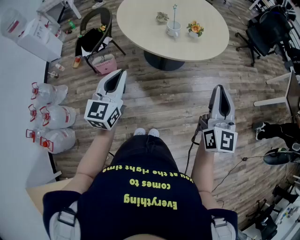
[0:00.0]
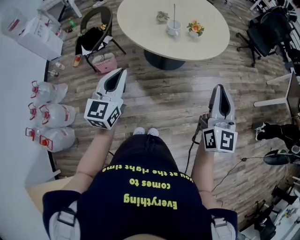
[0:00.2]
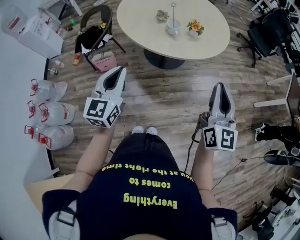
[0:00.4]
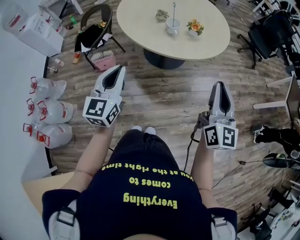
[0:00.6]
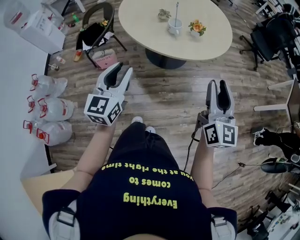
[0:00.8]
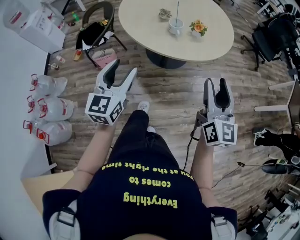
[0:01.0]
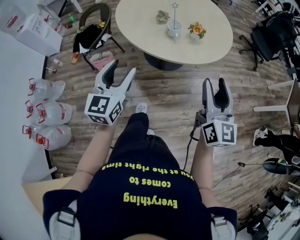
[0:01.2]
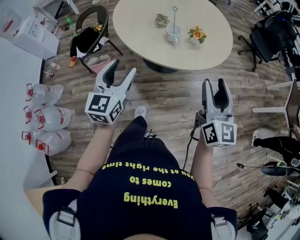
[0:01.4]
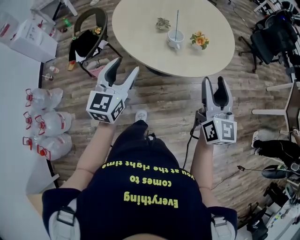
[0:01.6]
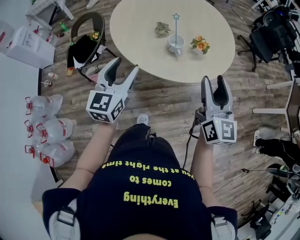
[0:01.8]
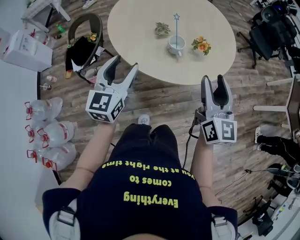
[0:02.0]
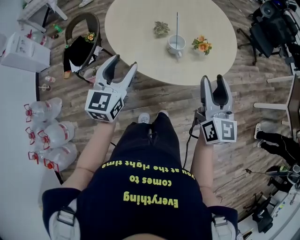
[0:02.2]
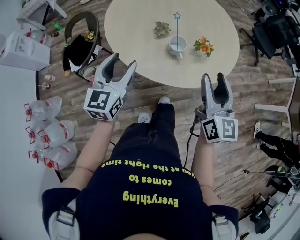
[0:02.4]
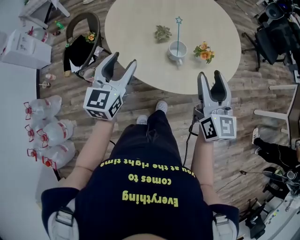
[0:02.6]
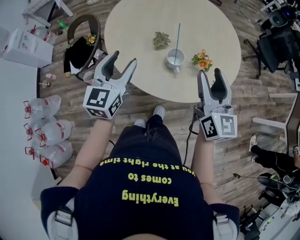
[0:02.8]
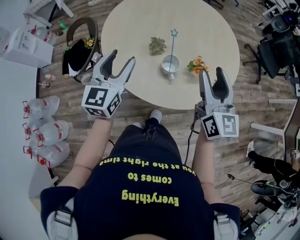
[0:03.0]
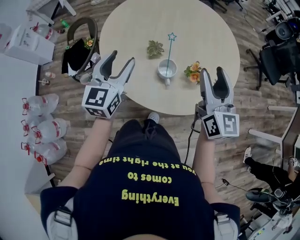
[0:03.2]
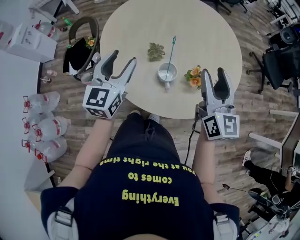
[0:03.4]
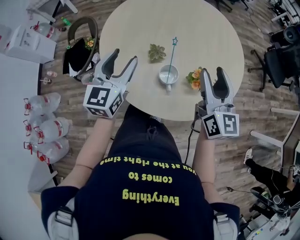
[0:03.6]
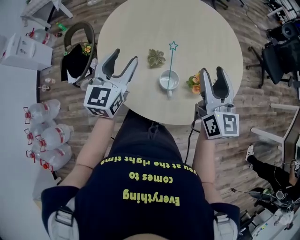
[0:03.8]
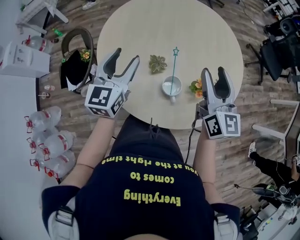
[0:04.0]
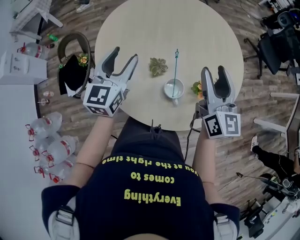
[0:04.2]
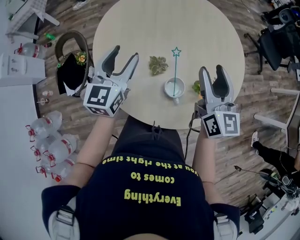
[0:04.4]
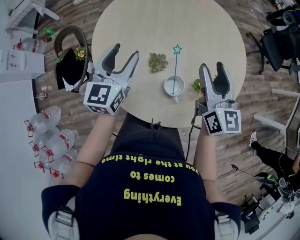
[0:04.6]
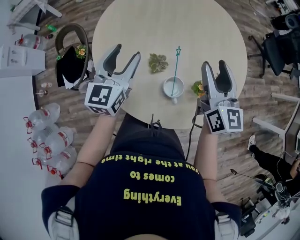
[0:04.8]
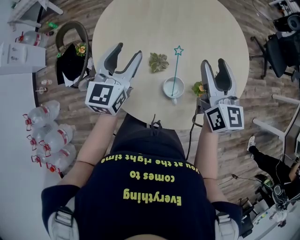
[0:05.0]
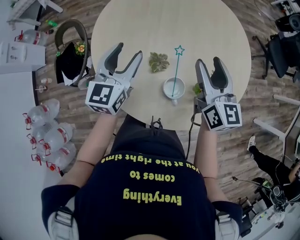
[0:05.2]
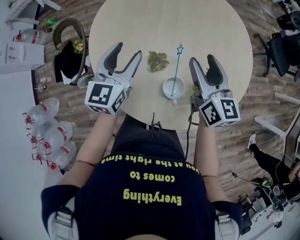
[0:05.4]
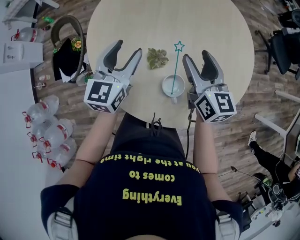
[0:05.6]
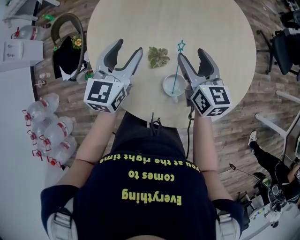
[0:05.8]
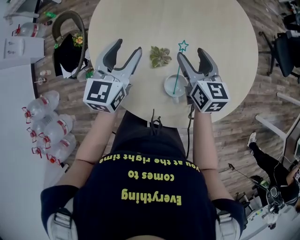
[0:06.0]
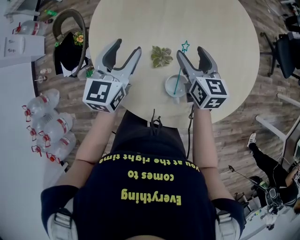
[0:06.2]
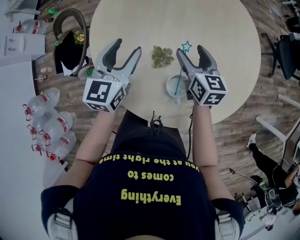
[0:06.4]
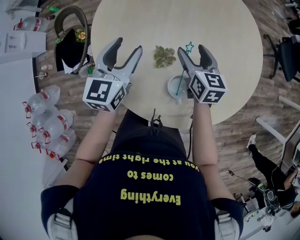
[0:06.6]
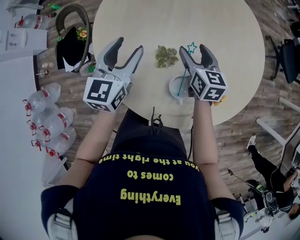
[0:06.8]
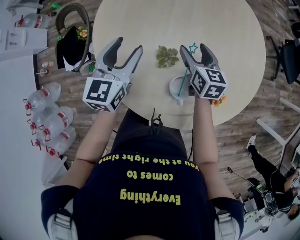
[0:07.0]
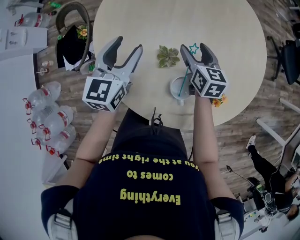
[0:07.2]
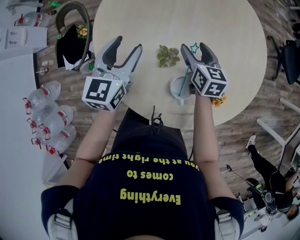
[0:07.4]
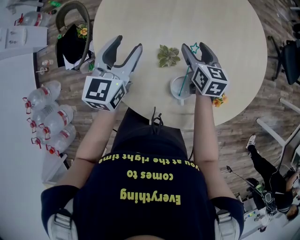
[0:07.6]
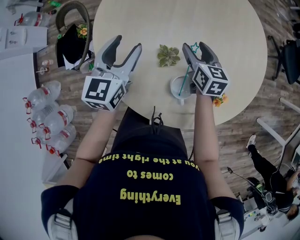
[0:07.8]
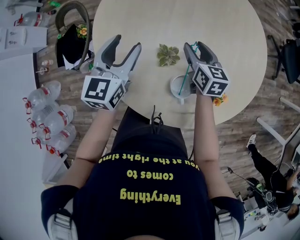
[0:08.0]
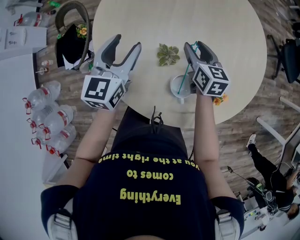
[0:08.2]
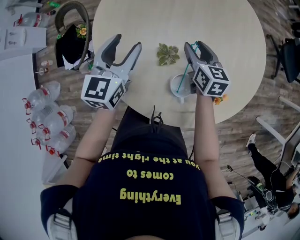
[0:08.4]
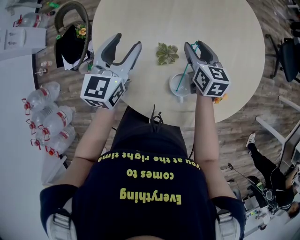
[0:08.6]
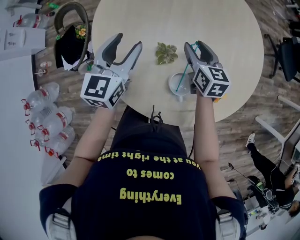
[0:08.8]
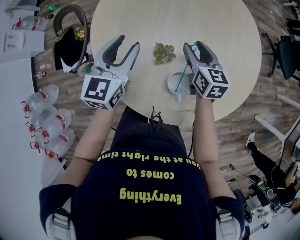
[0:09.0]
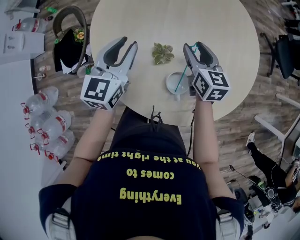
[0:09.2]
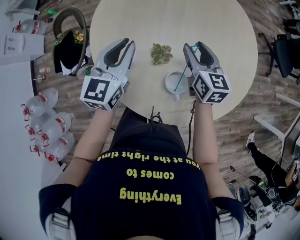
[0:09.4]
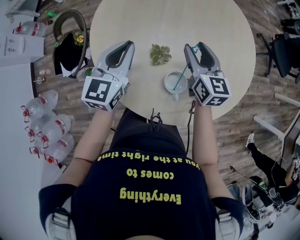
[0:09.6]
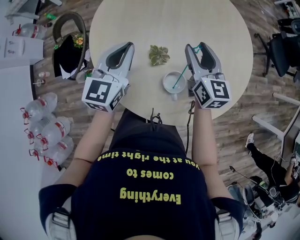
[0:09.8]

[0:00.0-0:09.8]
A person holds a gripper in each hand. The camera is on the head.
0:00.0 to 0:01.4: The grippers both shift forward by about 10 cm. The right gripper opens its fingers. Meanwhile the left gripper opens.
0:01.4 to 0:02.8: The grippers both shift forward by approximately 25 cm.
0:02.8 to 0:04.2: Both grippers travel together forward, roughly 20 cm.
0:04.2 to 0:05.6: The left gripper is displaced downward by about 5 cm; the right gripper heads downward and forward, covering some 15 cm.
0:05.6 to 0:07.0: The right gripper moves downward and forward, some 15 cm.
0:07.0 to 0:08.4: The grippers make only small movements.
0:08.4 to 0:09.8: The right gripper is displaced upward by approximately 10 cm; the left gripper changes place by some 5 cm, and closes.

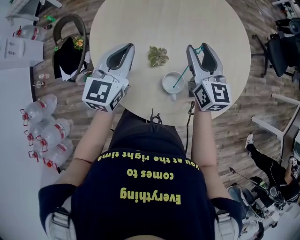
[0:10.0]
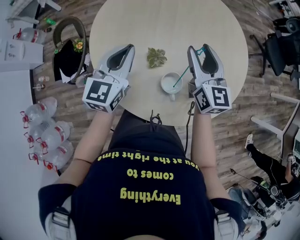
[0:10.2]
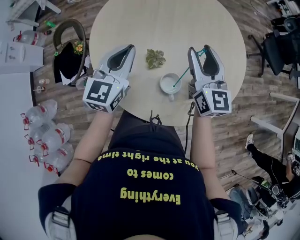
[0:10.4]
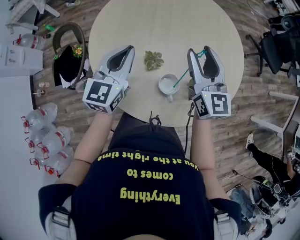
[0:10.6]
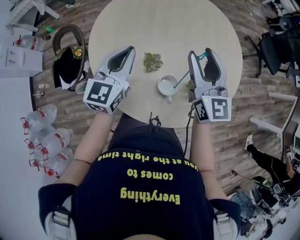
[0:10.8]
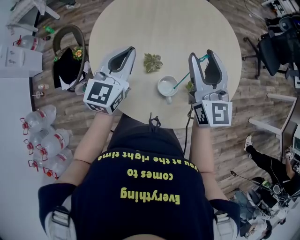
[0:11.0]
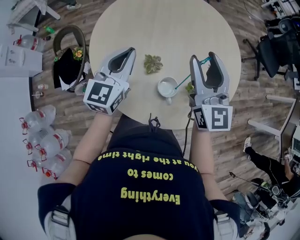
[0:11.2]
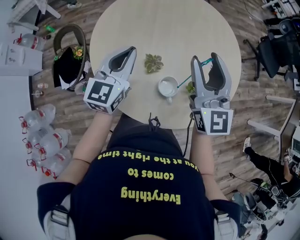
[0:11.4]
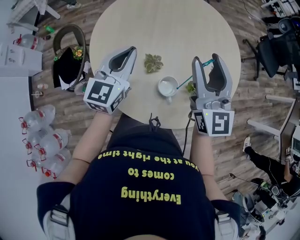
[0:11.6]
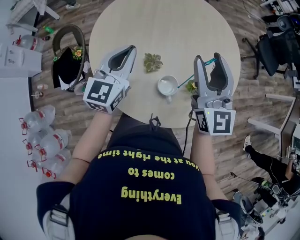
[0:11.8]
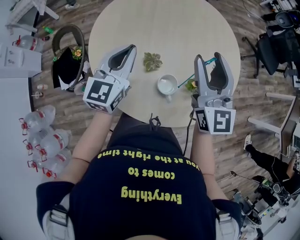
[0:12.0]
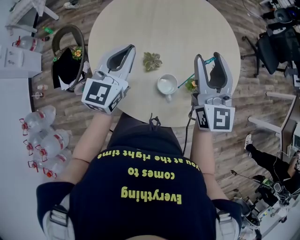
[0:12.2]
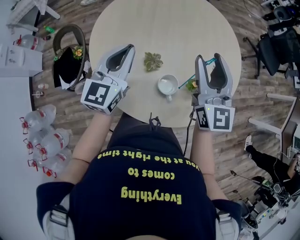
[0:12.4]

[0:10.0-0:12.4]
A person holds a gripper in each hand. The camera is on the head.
0:10.0 to 0:11.2: The right gripper is displaced upward and backward by some 15 cm.
0:11.2 to 0:12.4: The grippers stay close to where they were, moving slightly.

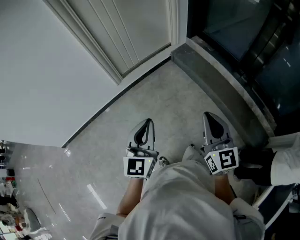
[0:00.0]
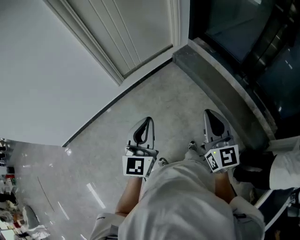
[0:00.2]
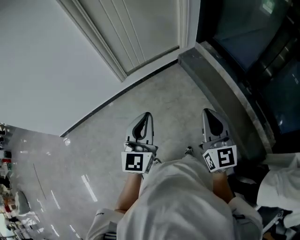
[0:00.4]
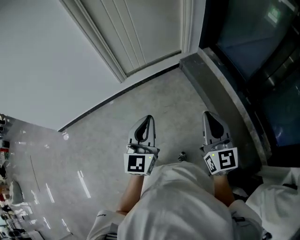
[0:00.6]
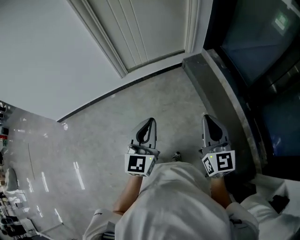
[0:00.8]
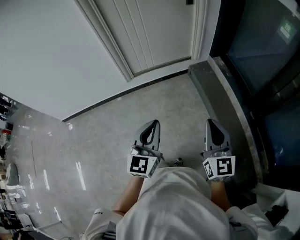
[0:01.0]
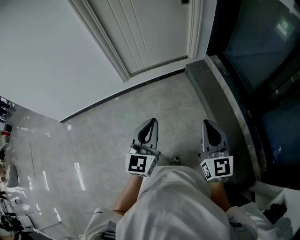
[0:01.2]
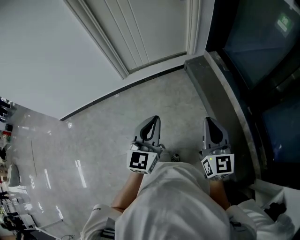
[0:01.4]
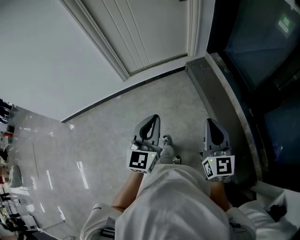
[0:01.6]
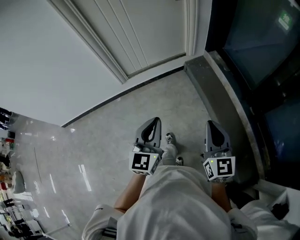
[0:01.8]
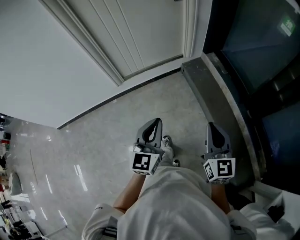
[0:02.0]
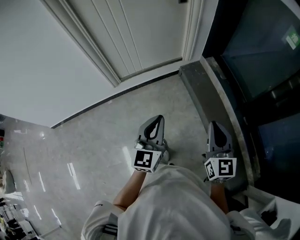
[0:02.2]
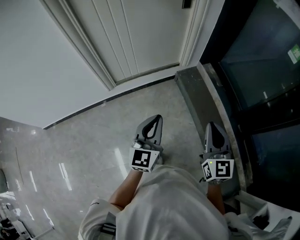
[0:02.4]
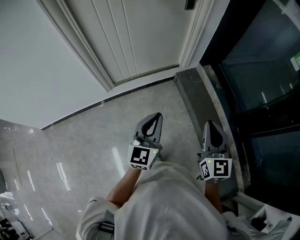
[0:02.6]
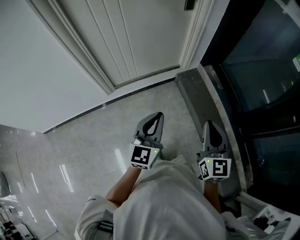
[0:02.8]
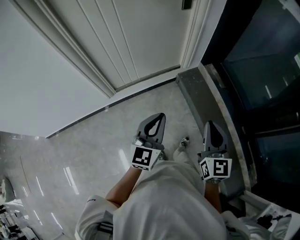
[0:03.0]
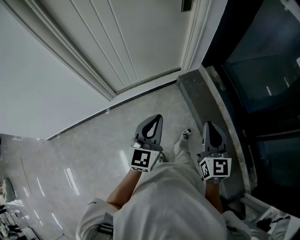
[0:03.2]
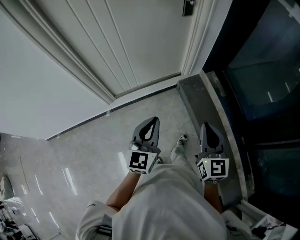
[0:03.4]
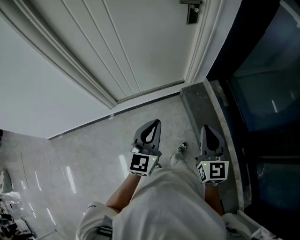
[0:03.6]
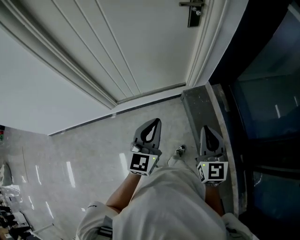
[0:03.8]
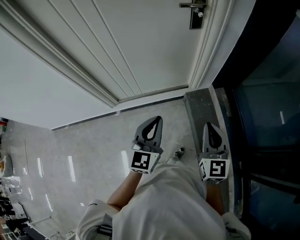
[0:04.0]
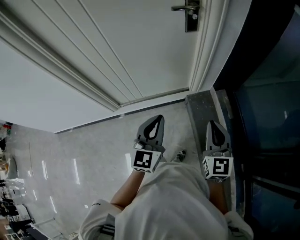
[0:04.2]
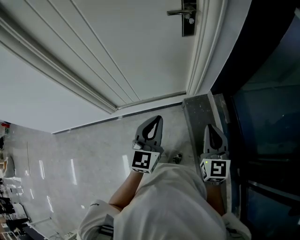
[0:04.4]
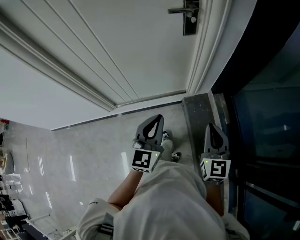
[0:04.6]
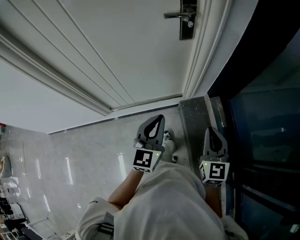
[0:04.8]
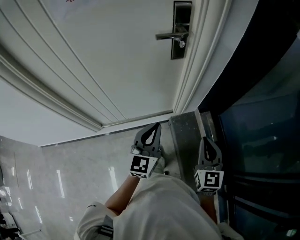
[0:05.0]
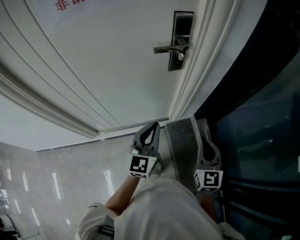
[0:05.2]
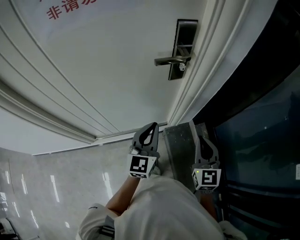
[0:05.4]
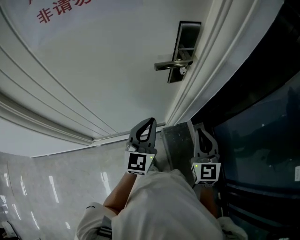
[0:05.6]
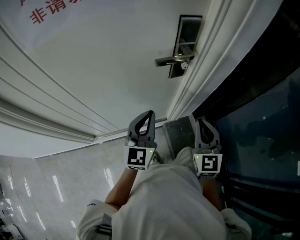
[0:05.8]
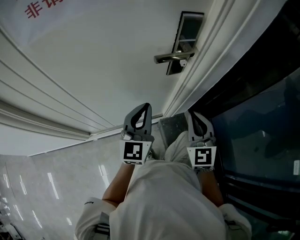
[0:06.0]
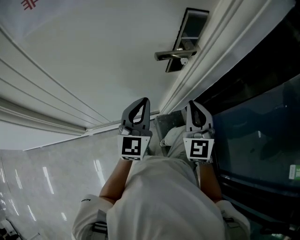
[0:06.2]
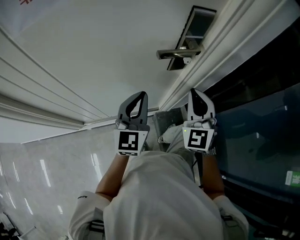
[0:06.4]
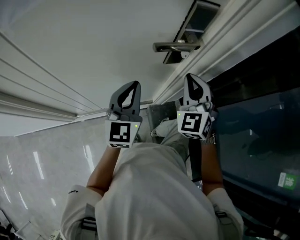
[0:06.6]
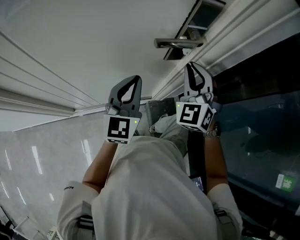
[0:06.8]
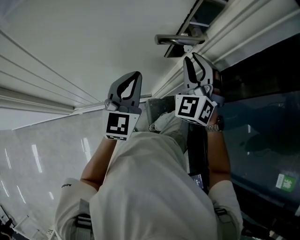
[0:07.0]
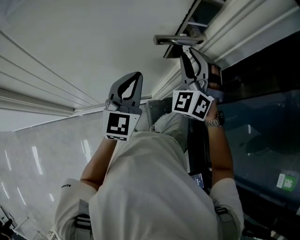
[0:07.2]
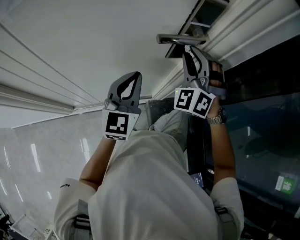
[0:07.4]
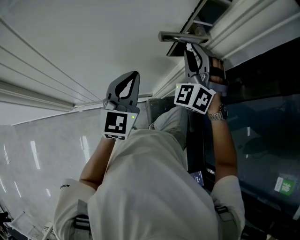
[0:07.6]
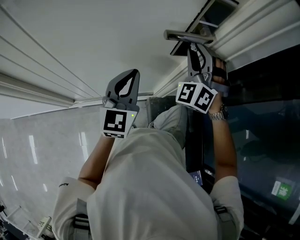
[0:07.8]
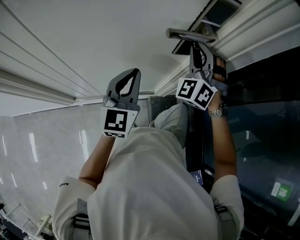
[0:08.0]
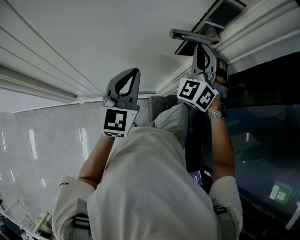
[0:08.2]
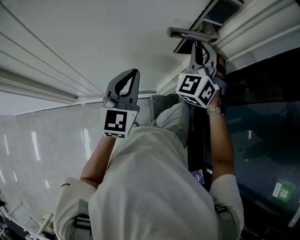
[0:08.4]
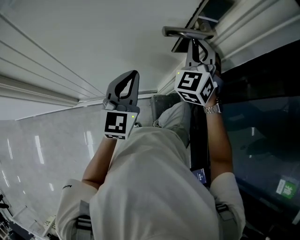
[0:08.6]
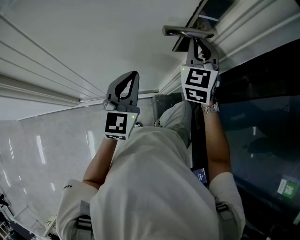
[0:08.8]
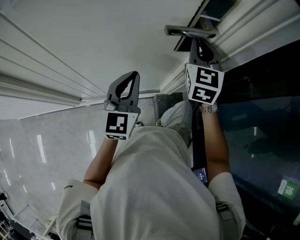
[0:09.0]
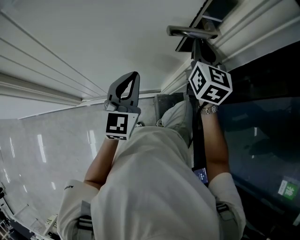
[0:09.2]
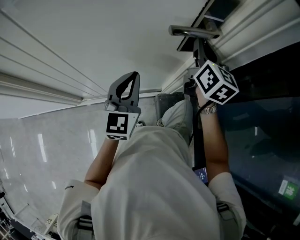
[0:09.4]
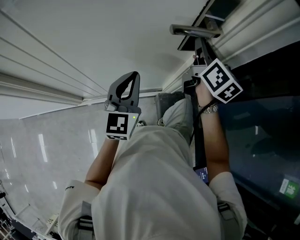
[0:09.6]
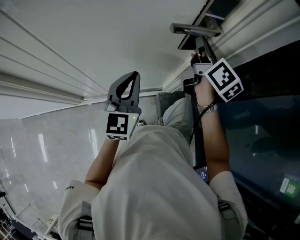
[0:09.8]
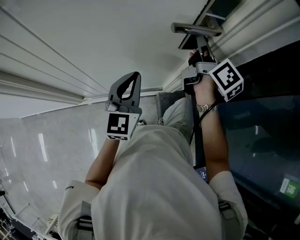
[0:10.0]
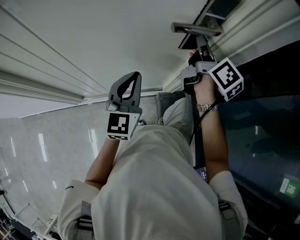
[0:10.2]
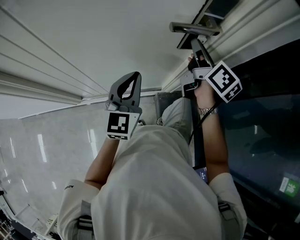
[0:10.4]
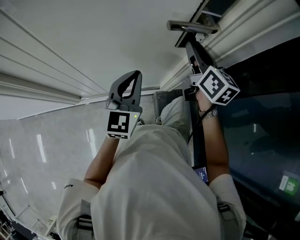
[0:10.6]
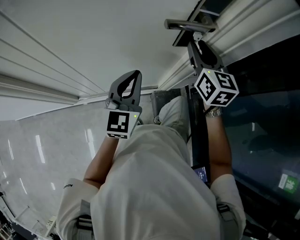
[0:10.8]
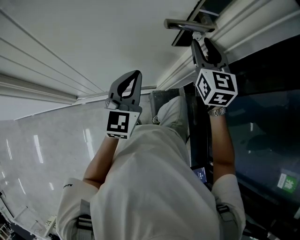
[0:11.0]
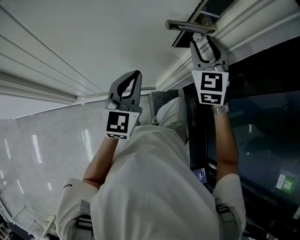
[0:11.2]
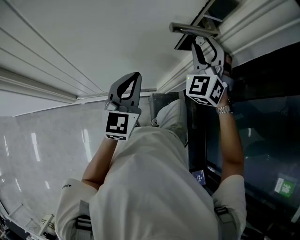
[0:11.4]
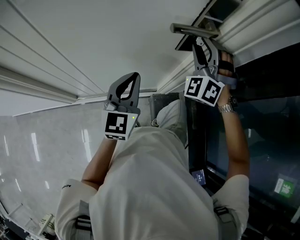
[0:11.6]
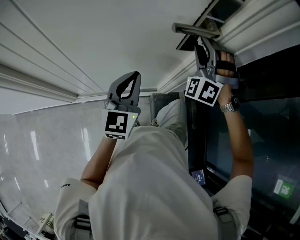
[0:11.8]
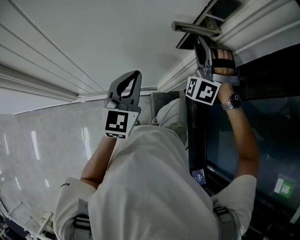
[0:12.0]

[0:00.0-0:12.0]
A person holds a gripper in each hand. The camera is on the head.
0:00.0 to 0:01.6: Both grippers move to the right and forward, approximately 25 cm.
0:01.6 to 0:03.0: Both grippers move forward, approximately 30 cm.
0:03.0 to 0:04.4: Both grippers travel together forward and to the right, about 30 cm.
0:04.4 to 0:06.0: The grippers both shift forward by about 30 cm.
0:06.0 to 0:07.6: The right gripper heads forward, covering about 15 cm, twists some 50 degrees counterclockwise, seen from behind, and opens its fingers, while the left gripper changes place by approximately 5 cm.
0:07.6 to 0:09.0: The right gripper twists about 60 degrees clockwise, seen from behind, and closes.
0:09.0 to 0:10.4: The right gripper twists about 60 degrees clockwise, seen from behind.
0:10.4 to 0:12.0: The right gripper twists about 140 degrees counterclockwise, seen from behind, and opens up.
